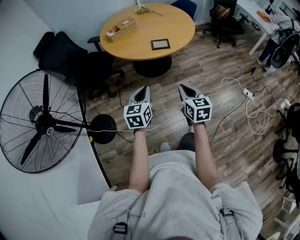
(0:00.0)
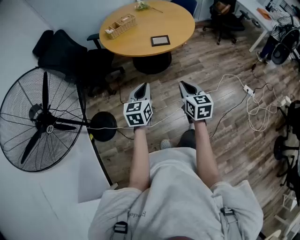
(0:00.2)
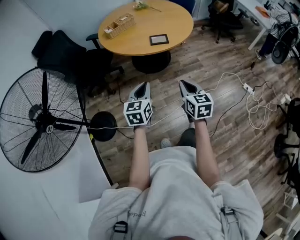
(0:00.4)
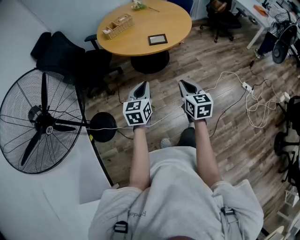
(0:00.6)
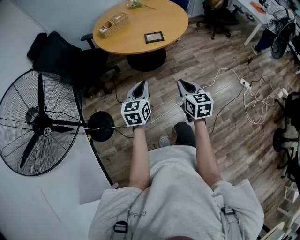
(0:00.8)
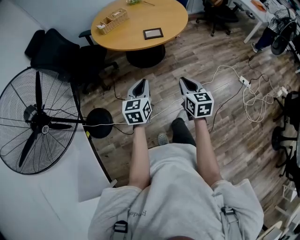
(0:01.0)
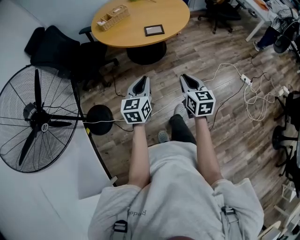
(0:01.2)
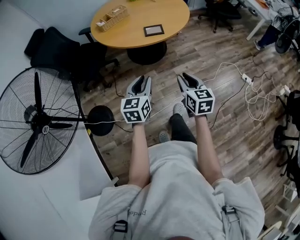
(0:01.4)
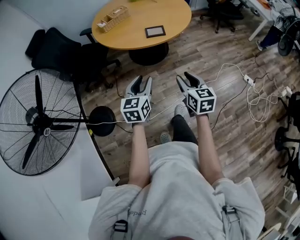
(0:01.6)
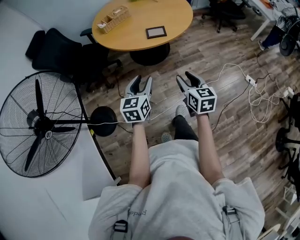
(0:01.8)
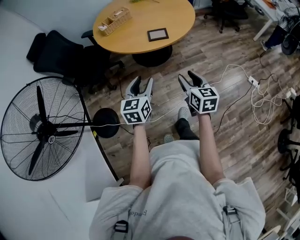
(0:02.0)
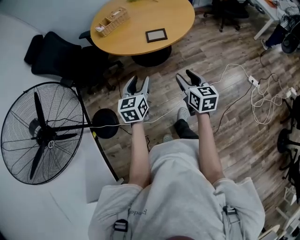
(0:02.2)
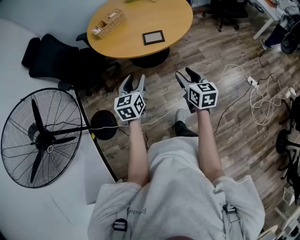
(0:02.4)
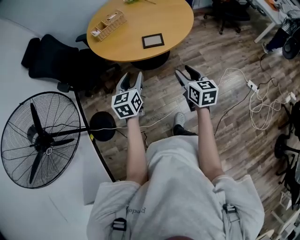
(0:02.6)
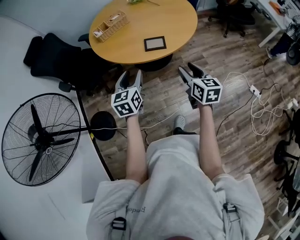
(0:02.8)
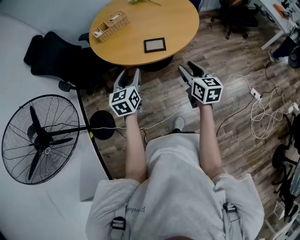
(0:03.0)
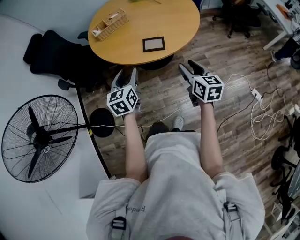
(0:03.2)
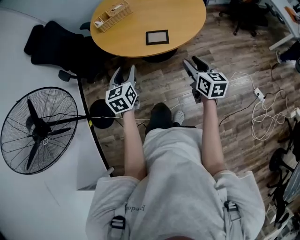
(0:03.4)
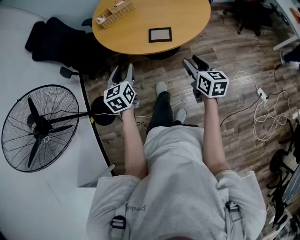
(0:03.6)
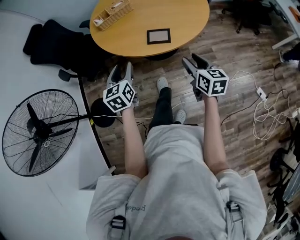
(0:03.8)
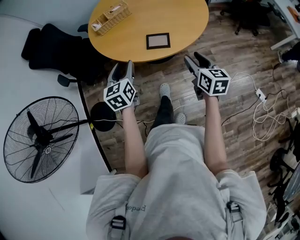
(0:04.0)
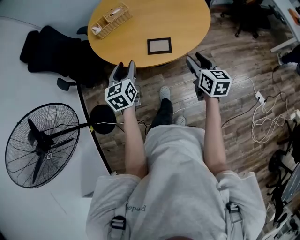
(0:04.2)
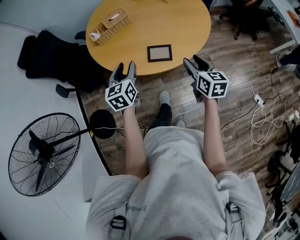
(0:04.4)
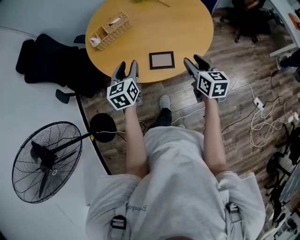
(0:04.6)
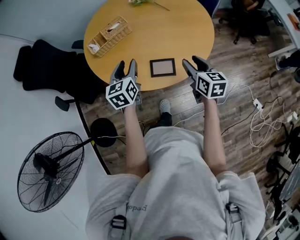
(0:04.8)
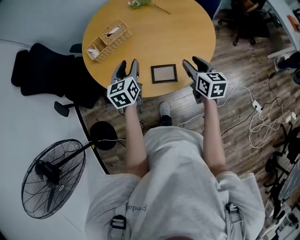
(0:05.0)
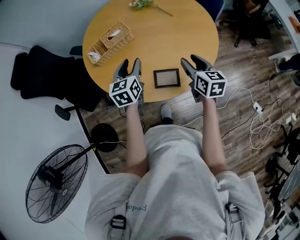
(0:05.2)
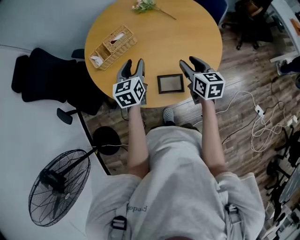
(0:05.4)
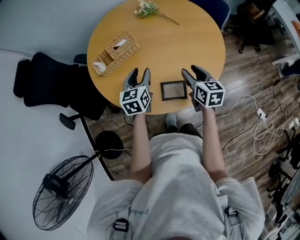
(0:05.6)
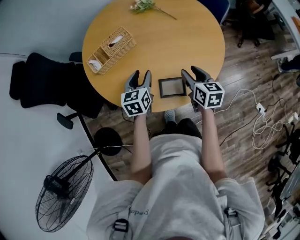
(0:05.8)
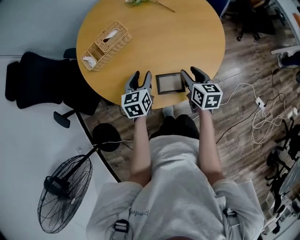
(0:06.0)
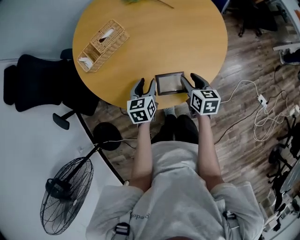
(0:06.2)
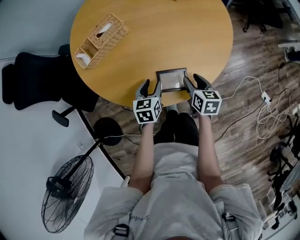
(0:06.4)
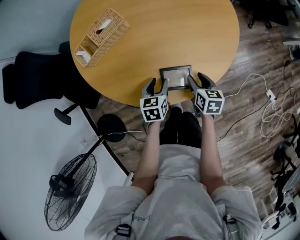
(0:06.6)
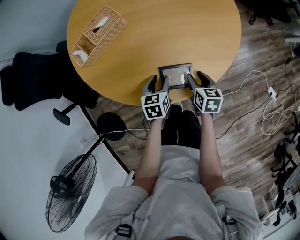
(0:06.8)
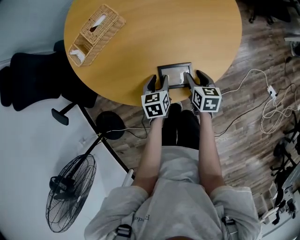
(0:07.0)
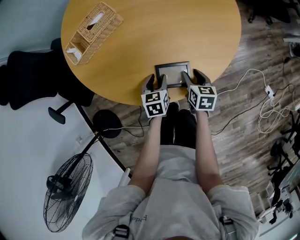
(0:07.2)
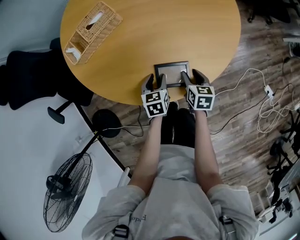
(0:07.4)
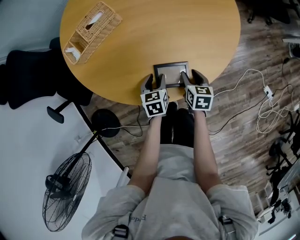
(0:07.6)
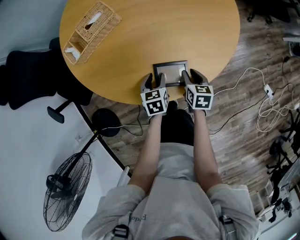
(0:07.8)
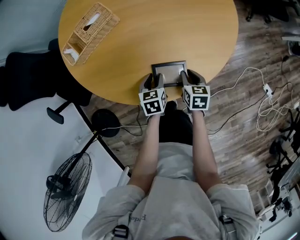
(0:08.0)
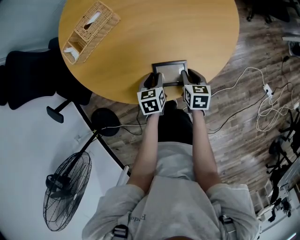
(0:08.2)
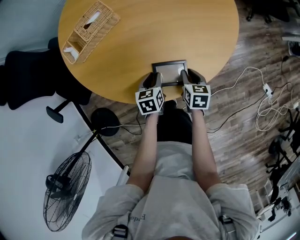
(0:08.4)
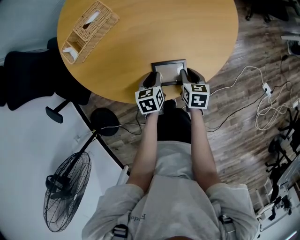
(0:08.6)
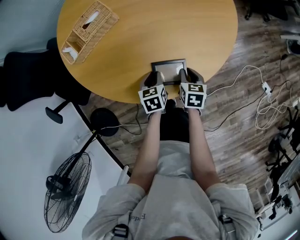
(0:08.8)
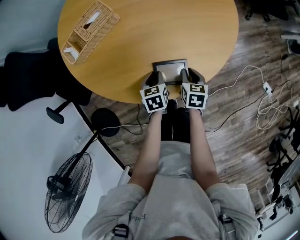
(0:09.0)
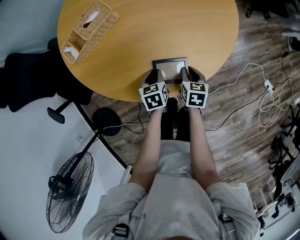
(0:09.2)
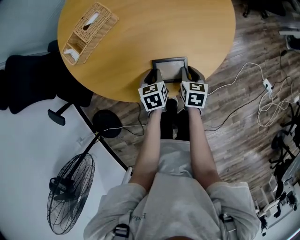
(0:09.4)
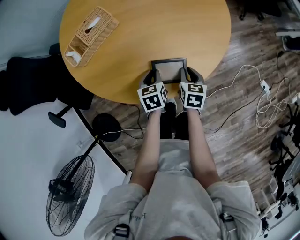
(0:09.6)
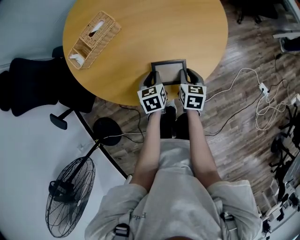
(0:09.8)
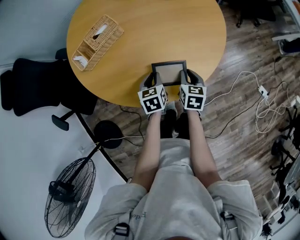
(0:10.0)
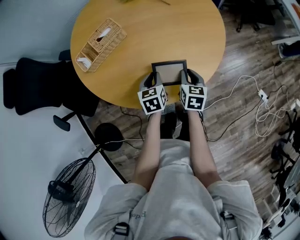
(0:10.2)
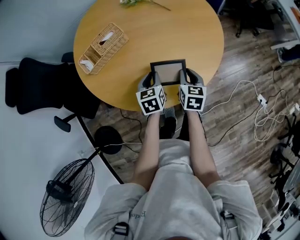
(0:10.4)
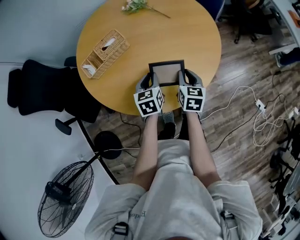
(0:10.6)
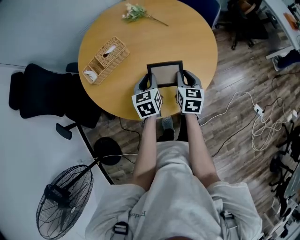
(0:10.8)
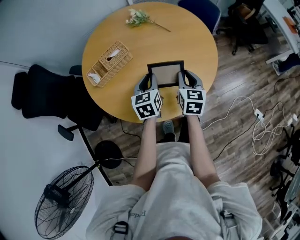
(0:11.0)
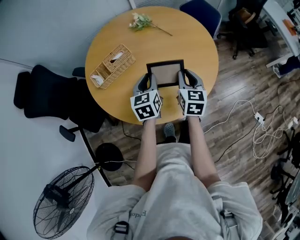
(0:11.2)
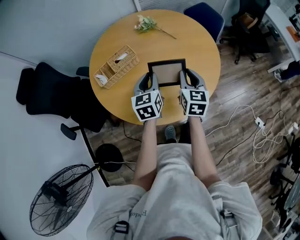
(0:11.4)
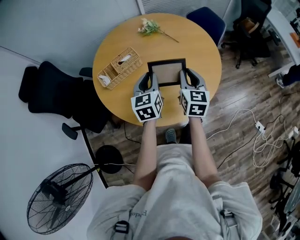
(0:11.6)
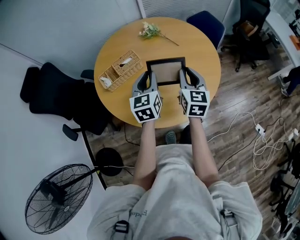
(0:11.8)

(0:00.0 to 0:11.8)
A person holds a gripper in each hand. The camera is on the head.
0:00.0 - 0:01.4: The left gripper opens up.
0:01.4 - 0:03.0: Both grippers move forward, approximately 25 cm. The left gripper opens up. Meanwhile the right gripper opens its fingers.
0:03.0 - 0:04.4: The two grippers go roughly 15 cm forward.
0:04.4 - 0:06.0: Both grippers travel together forward and downward, about 20 cm.
0:06.0 - 0:07.4: Both grippers travel together downward, approximately 15 cm.
0:07.4 - 0:08.8: The left gripper closes; the right gripper closes its fingers.
0:08.8 - 0:10.4: The grippers both shift upward by about 15 cm.
0:10.4 - 0:11.8: The two grippers go some 20 cm upward. The right gripper changes its angle by about 30 degrees; the left gripper changes its angle by roughly 30 degrees.

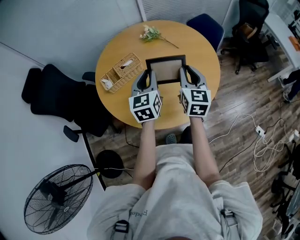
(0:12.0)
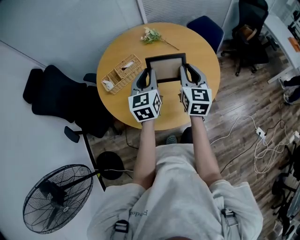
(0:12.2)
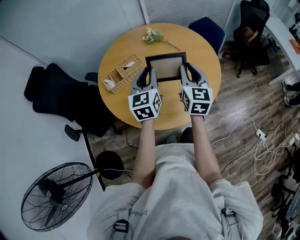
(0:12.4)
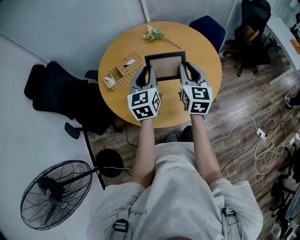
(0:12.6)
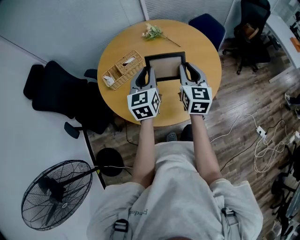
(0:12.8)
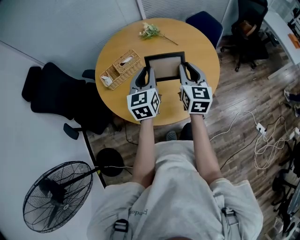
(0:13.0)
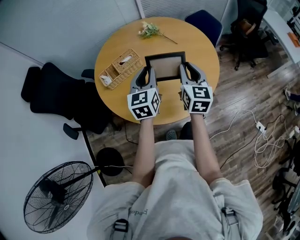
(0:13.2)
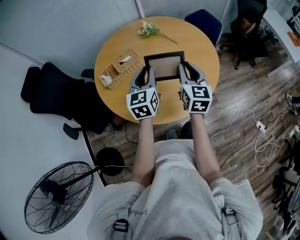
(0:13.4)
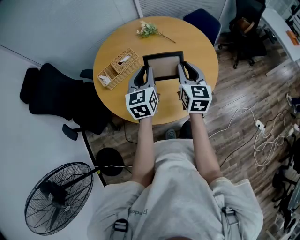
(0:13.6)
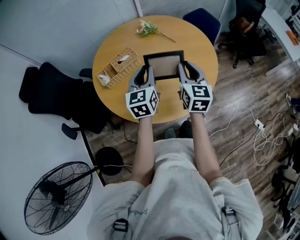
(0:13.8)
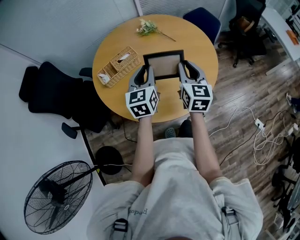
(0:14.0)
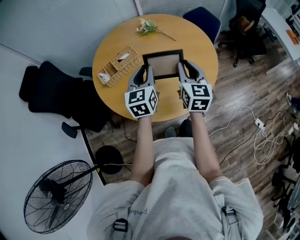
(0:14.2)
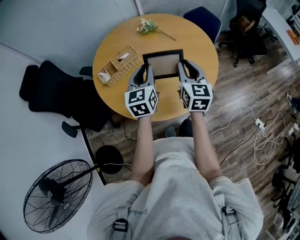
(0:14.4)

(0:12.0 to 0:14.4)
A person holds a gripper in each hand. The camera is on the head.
0:12.0 - 0:13.2: There are only small adjustments of the grippers.
0:13.2 - 0:14.4: Both grippers stay about where they are.

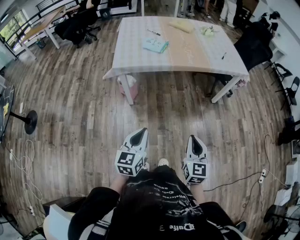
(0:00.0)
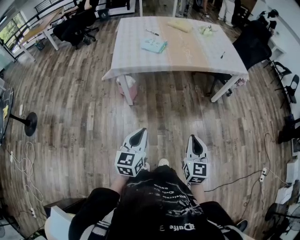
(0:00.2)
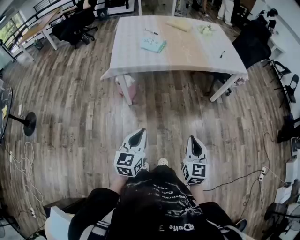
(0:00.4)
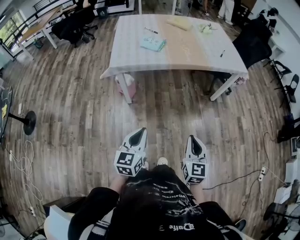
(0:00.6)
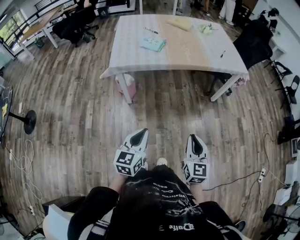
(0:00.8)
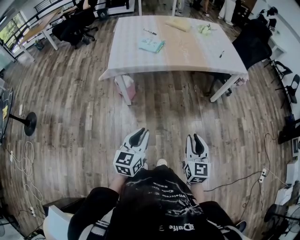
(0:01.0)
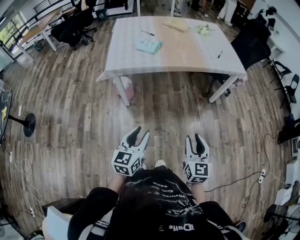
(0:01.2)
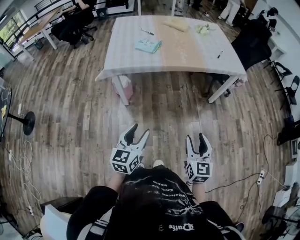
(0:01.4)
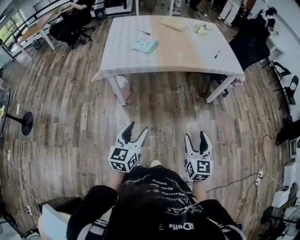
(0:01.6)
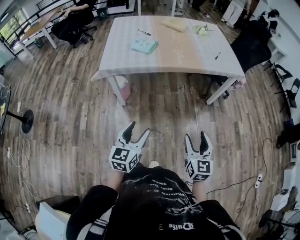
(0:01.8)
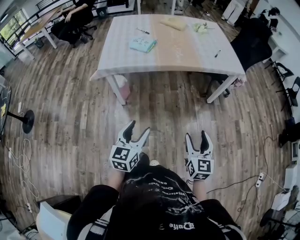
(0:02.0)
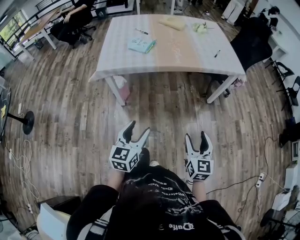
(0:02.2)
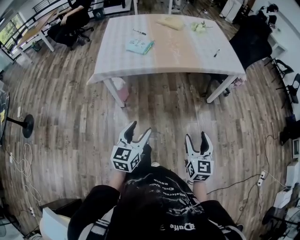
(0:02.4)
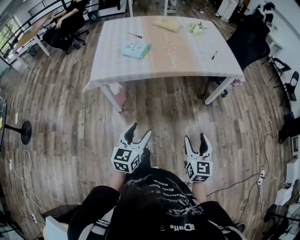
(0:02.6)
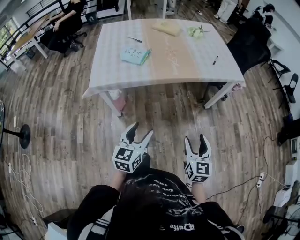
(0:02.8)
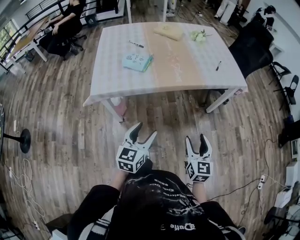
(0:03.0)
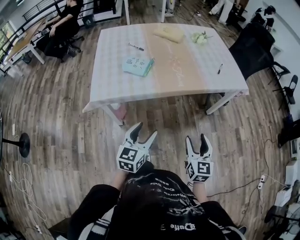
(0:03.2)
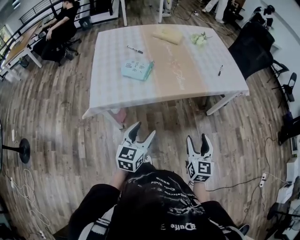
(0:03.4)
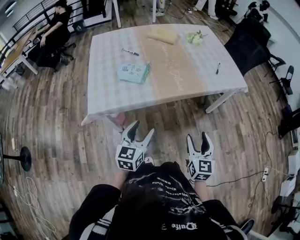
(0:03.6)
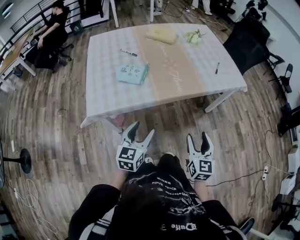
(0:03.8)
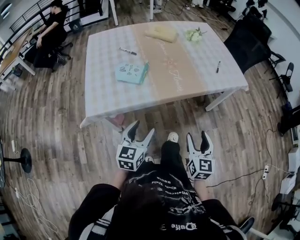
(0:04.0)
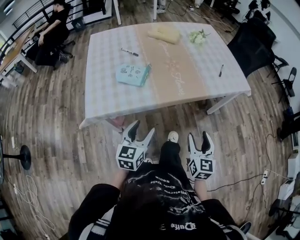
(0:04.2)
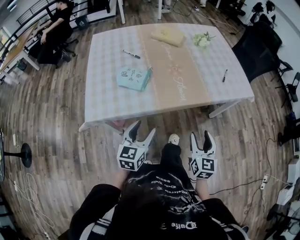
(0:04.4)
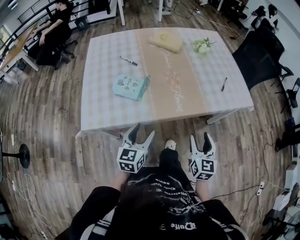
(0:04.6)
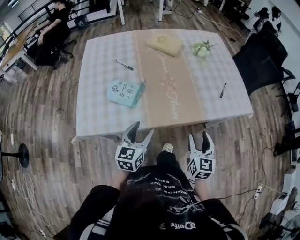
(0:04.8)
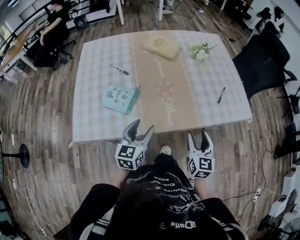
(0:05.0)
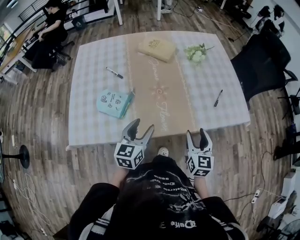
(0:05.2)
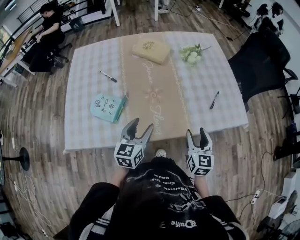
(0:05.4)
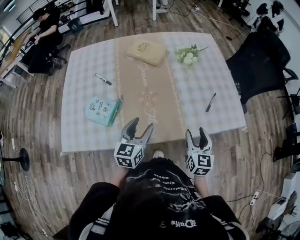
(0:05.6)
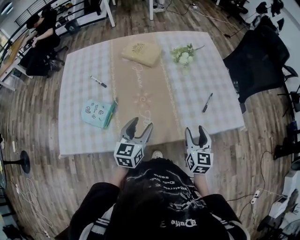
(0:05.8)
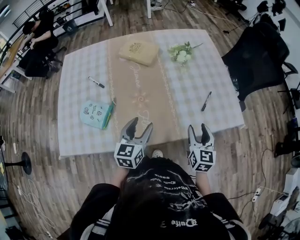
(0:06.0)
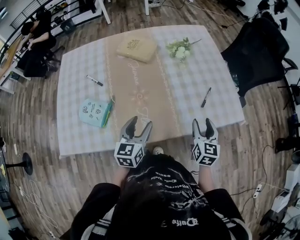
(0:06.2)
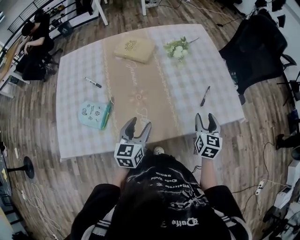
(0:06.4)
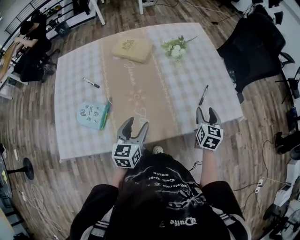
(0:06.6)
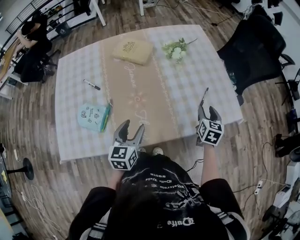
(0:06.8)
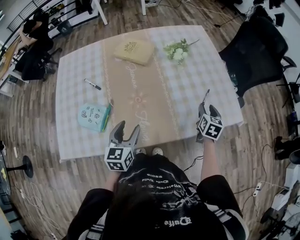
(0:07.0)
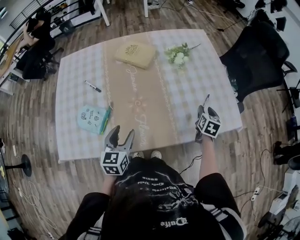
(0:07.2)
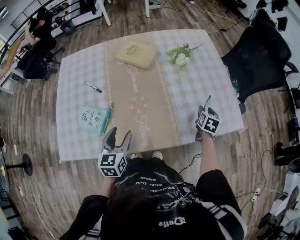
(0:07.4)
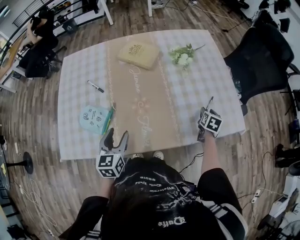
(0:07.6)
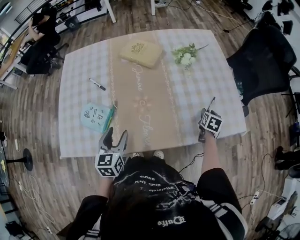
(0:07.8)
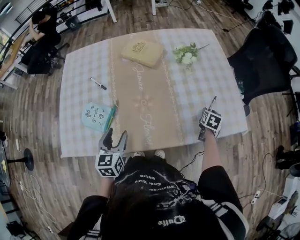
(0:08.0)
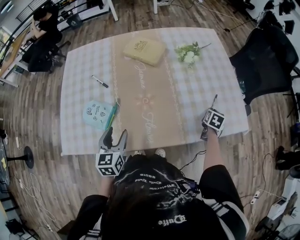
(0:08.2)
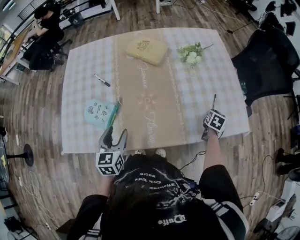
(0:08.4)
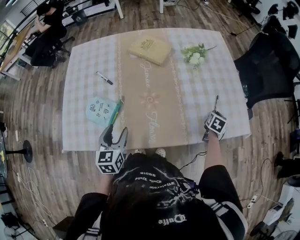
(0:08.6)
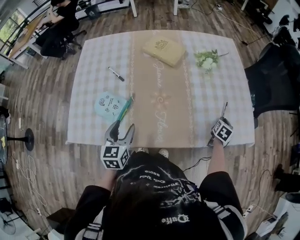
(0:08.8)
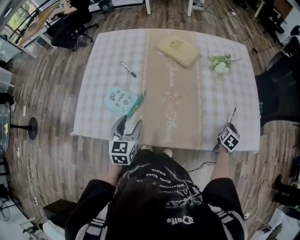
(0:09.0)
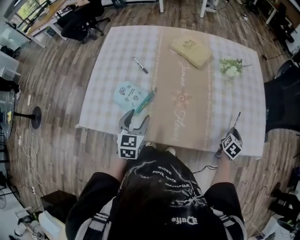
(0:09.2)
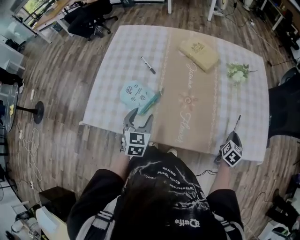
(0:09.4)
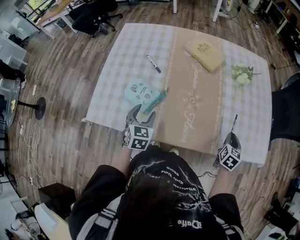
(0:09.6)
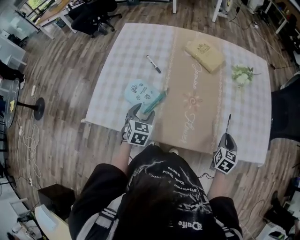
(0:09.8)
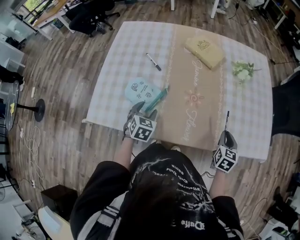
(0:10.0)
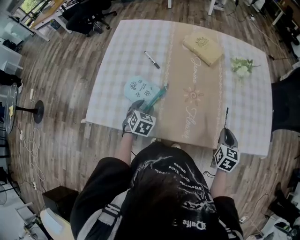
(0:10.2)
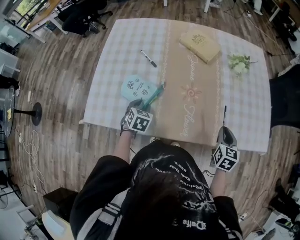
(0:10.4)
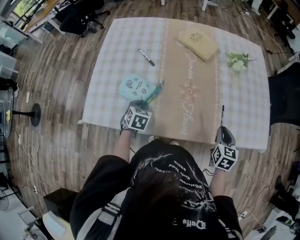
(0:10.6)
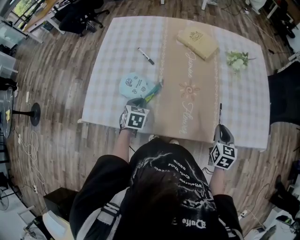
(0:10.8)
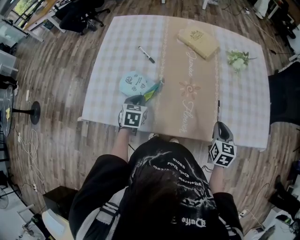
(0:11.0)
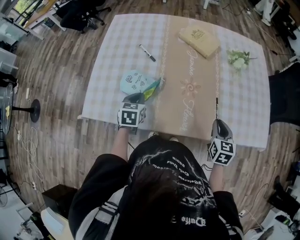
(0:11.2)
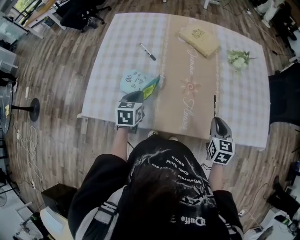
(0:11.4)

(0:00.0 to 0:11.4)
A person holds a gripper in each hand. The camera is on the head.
0:00.0 - 0:01.4: The right gripper travels to the right by about 5 cm, and opens. The left gripper moves roughly 5 cm, and opens.
0:01.4 - 0:02.8: The grippers both shift forward by some 15 cm.
0:02.8 - 0:04.2: Both grippers move forward and to the left, approximately 20 cm.
0:04.2 - 0:05.6: The left gripper moves forward and to the right, some 35 cm. Meanwhile the right gripper heads forward, covering about 35 cm.
0:05.6 - 0:07.2: The right gripper travels forward, to the right and downward by roughly 25 cm, and changes its angle by roughly 30 degrees.
0:07.2 - 0:08.6: The right gripper changes place by approximately 5 cm, and closes its fingers; the left gripper is displaced to the left by approximately 10 cm.
0:08.6 - 0:10.0: The right gripper heads to the left and backward, covering some 20 cm, and swivels roughly 30 degrees. Meanwhile the left gripper travels to the left and downward by roughly 10 cm, and swivels some 30 degrees.
0:10.0 - 0:11.4: The right gripper moves to the left, about 5 cm, while the left gripper swivels some 20 degrees, and closes.